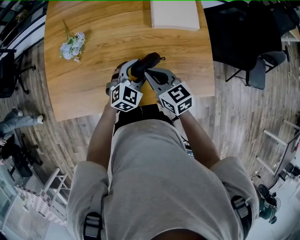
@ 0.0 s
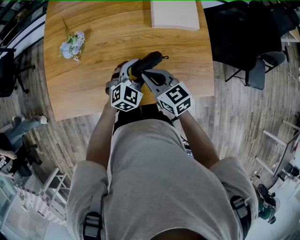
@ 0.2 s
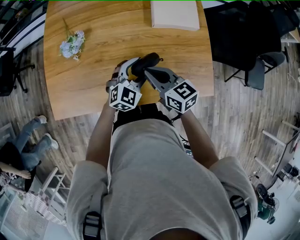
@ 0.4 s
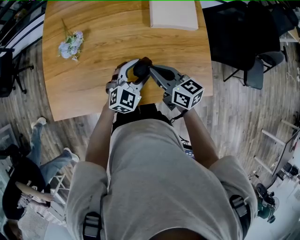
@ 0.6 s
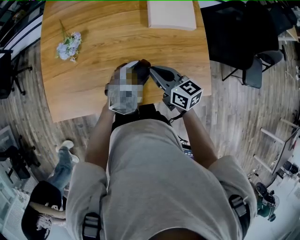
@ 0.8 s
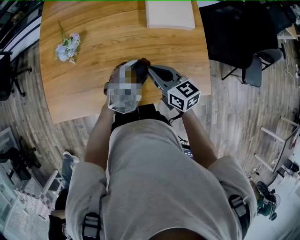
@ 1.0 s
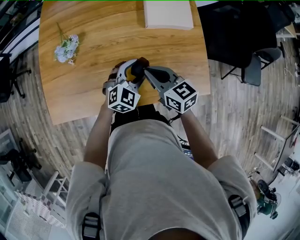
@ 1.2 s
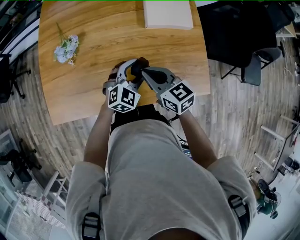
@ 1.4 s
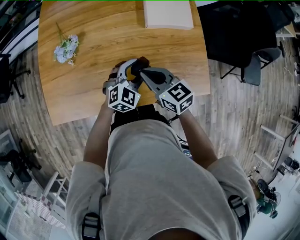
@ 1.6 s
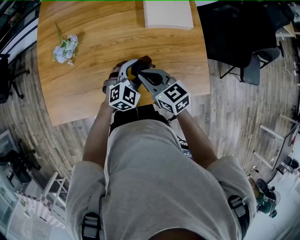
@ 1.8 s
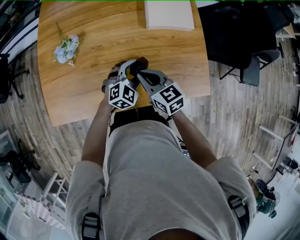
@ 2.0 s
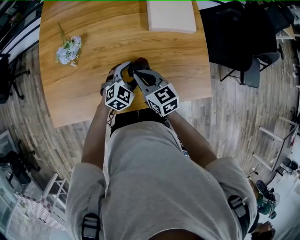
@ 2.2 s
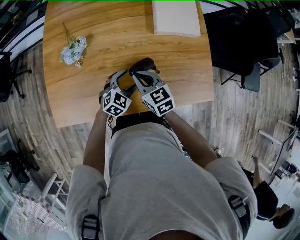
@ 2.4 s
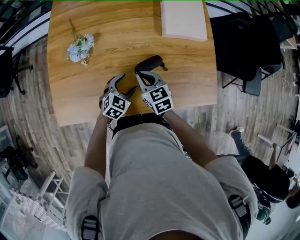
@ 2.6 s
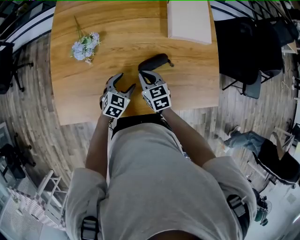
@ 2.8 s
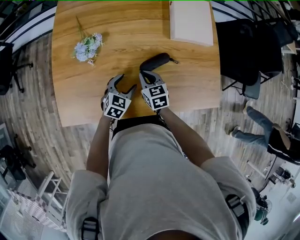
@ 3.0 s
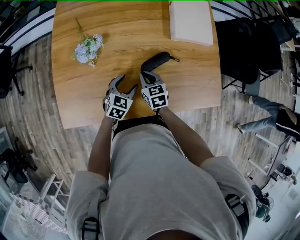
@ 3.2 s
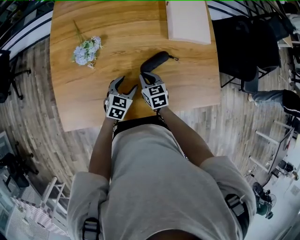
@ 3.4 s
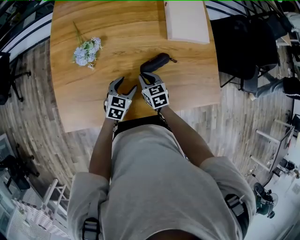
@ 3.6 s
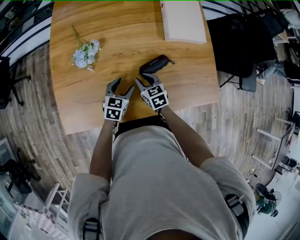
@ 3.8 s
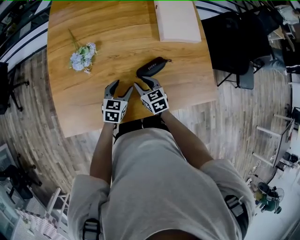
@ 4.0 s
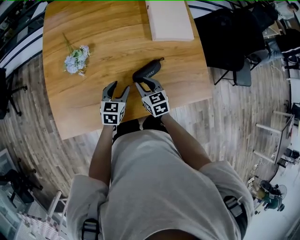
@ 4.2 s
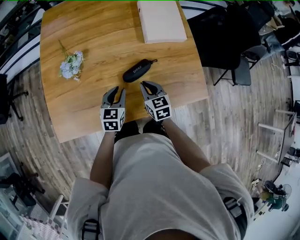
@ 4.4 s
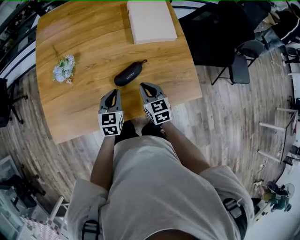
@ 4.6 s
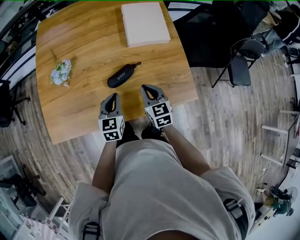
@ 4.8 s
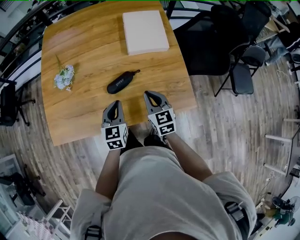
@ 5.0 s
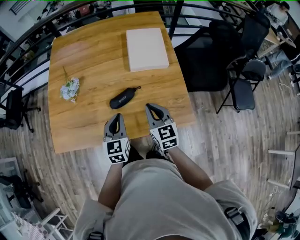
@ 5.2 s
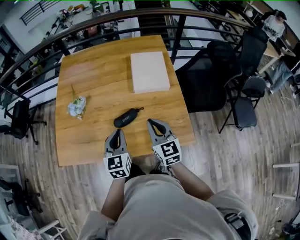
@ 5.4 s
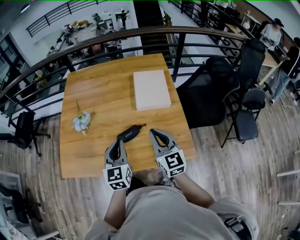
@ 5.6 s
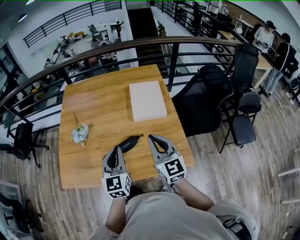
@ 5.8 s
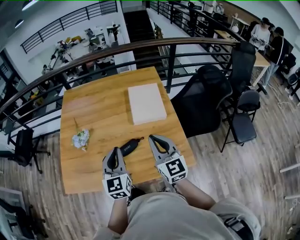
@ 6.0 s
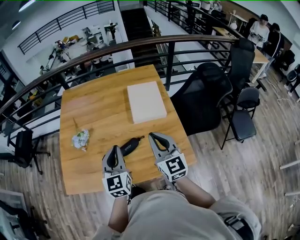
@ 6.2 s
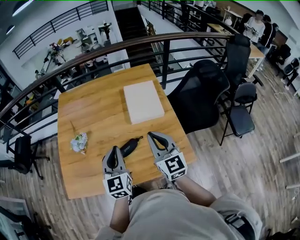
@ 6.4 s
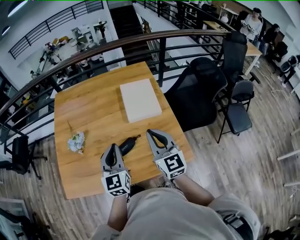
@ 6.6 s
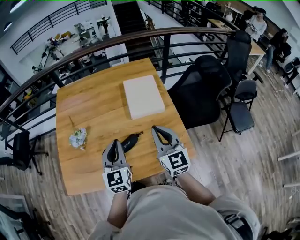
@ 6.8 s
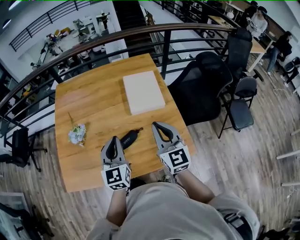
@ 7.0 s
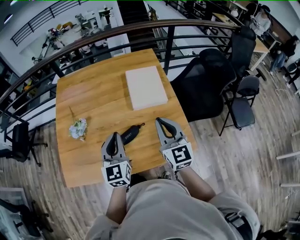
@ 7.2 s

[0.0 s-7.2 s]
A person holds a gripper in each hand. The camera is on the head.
0.0 to 1.4 s: The grippers stay close to where they were, moving slightly.
1.4 to 2.8 s: The left gripper travels to the left and downward by approximately 20 cm, and rotates about 30 degrees, while the right gripper heads downward and to the left, covering about 15 cm.
2.8 to 4.4 s: The right gripper heads to the right, covering about 10 cm, and opens and closes again. The left gripper heads upward, covering some 5 cm, and closes up.
4.4 to 5.8 s: The two grippers go roughly 30 cm upward and to the right. The right gripper tilts its fingers roughly 30 degrees upward, while the left gripper turns by some 30 degrees.
5.8 to 7.2 s: There are only small adjustments of the grippers.

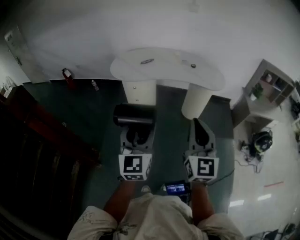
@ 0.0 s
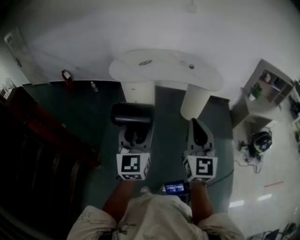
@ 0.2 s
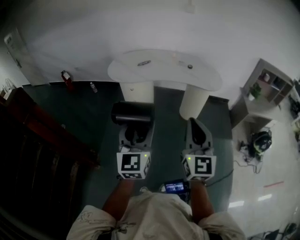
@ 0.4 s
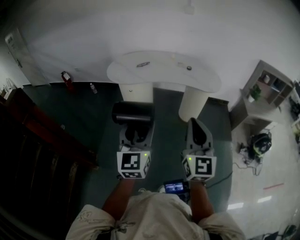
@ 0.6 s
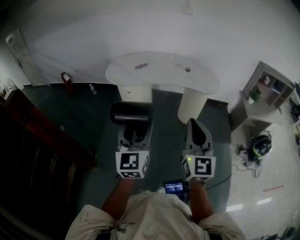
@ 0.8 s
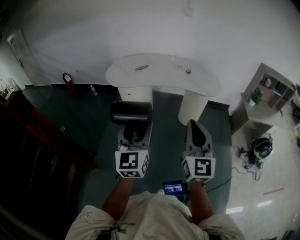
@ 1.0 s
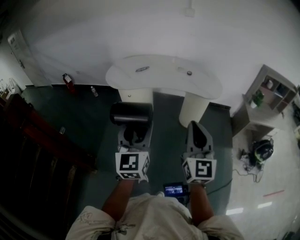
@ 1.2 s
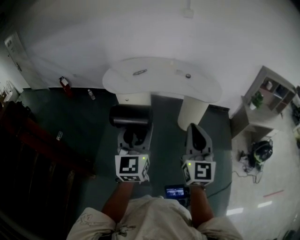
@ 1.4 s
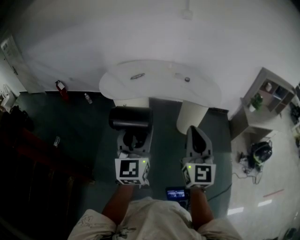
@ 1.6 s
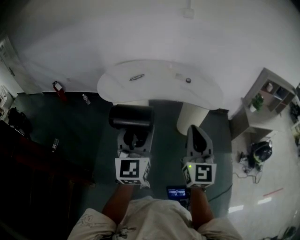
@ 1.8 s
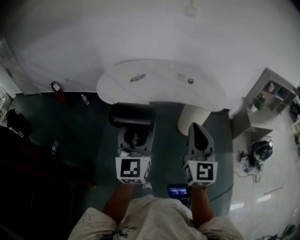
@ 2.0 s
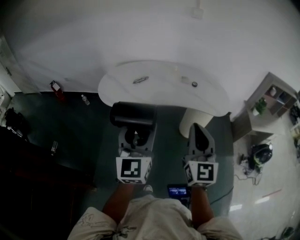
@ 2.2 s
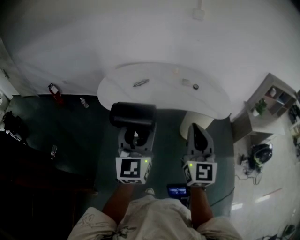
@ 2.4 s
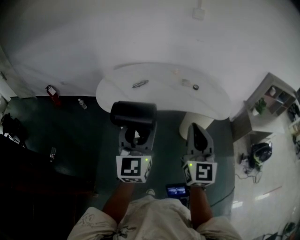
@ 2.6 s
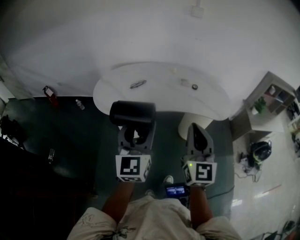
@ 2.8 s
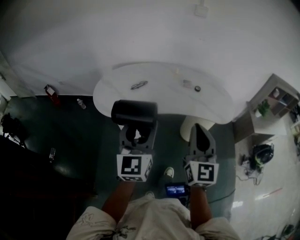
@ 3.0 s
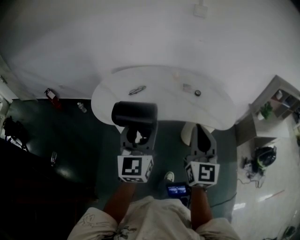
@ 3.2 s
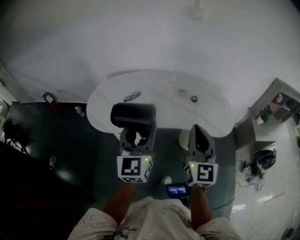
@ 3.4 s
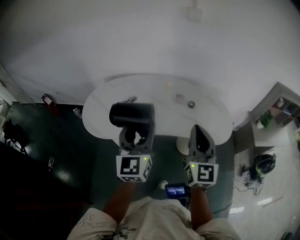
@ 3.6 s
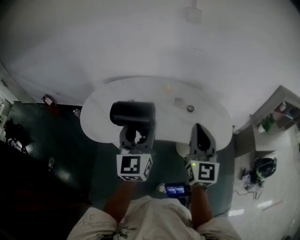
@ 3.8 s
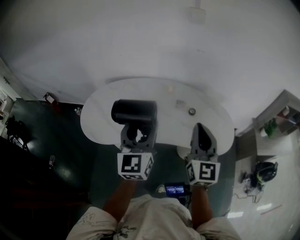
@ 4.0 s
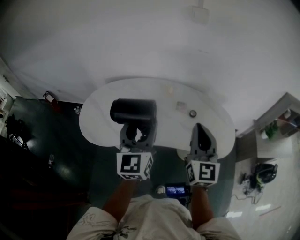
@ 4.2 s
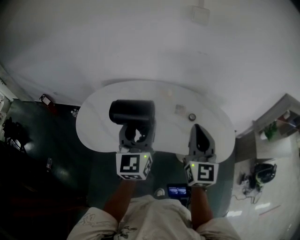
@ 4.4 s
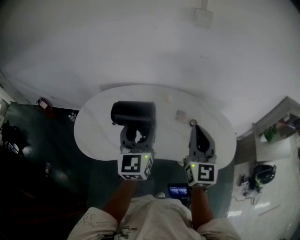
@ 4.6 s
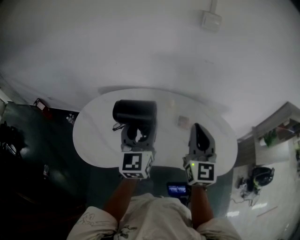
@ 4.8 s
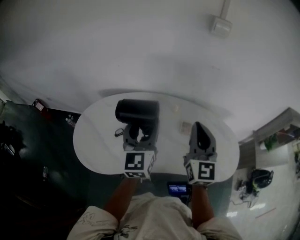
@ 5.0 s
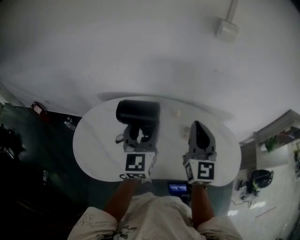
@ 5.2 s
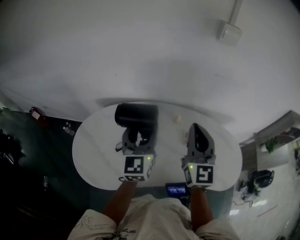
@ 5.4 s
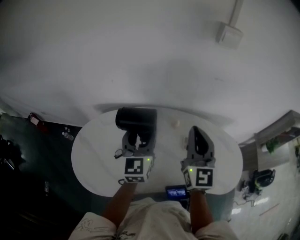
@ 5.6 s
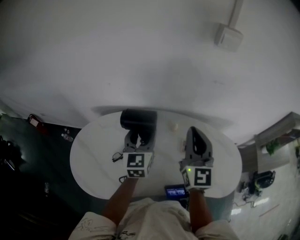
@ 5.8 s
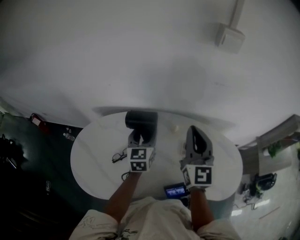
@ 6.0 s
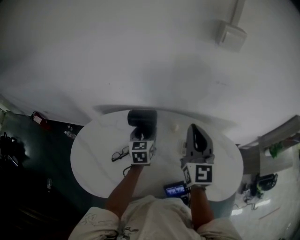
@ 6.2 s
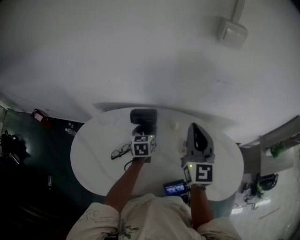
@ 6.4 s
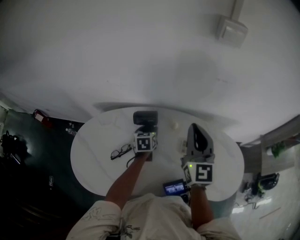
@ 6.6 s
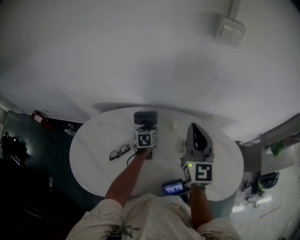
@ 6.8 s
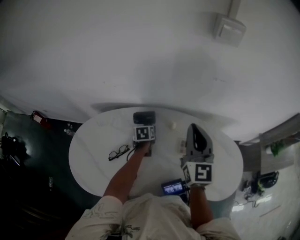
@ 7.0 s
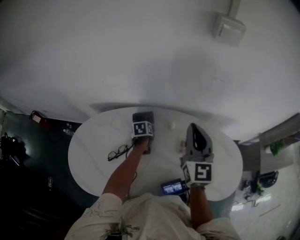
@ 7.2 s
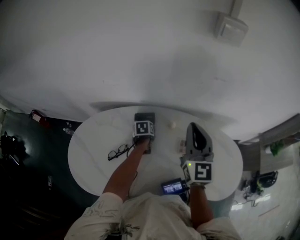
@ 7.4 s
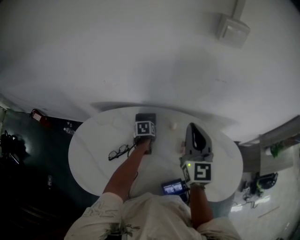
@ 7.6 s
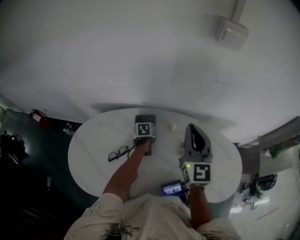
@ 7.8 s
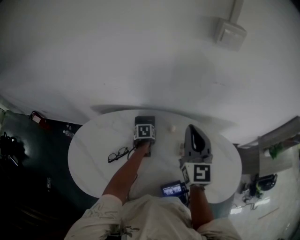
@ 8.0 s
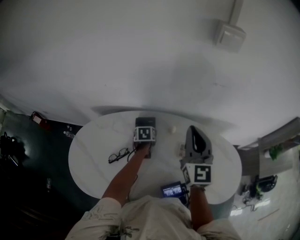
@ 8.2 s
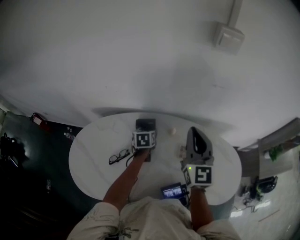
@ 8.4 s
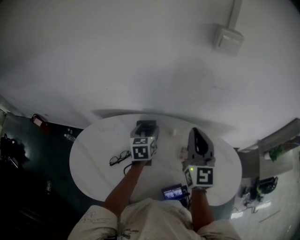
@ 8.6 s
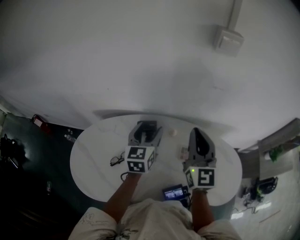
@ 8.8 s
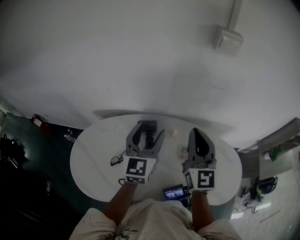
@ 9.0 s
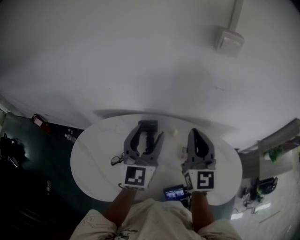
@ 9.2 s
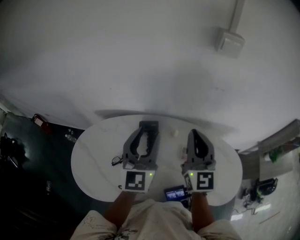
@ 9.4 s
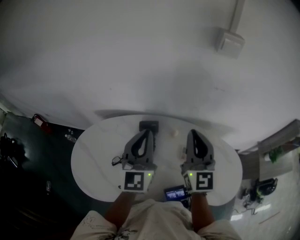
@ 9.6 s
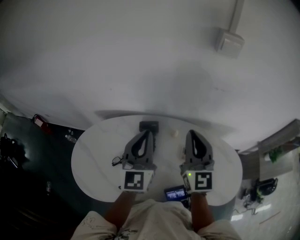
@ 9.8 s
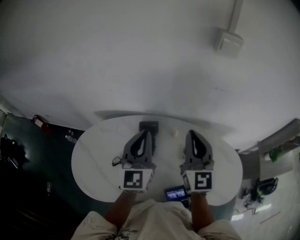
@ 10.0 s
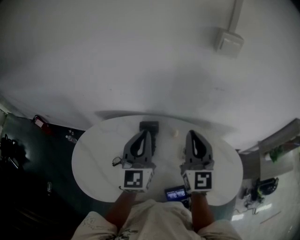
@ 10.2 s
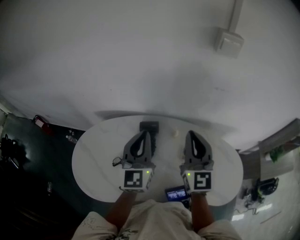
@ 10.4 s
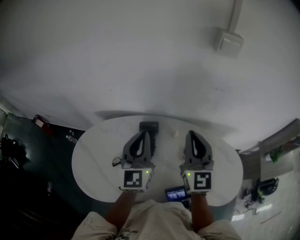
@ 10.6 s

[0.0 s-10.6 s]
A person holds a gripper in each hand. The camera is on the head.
0.0 to 1.6 s: Both grippers travel together forward and to the right, roughly 15 cm.
1.6 to 3.0 s: The two grippers go some 25 cm forward.
3.0 to 4.6 s: The two grippers go approximately 30 cm forward.
4.6 to 6.0 s: The right gripper is displaced forward by about 20 cm. Meanwhile the left gripper goes some 30 cm forward and downward, and changes its angle by some 20 degrees.
6.0 to 7.6 s: The right gripper moves approximately 5 cm. Meanwhile the left gripper shifts roughly 20 cm downward, and points its fingers some 40 degrees further downward.
7.6 to 9.0 s: The left gripper heads upward, covering some 35 cm, and angles its fingers upward, by roughly 60 degrees; the right gripper changes place by approximately 5 cm.
9.0 to 10.6 s: The left gripper closes up.

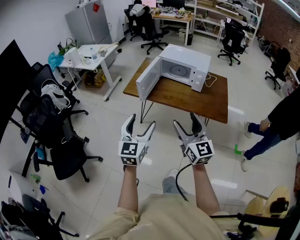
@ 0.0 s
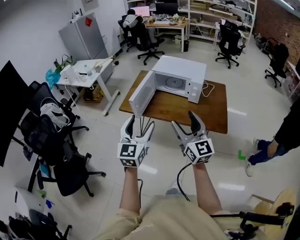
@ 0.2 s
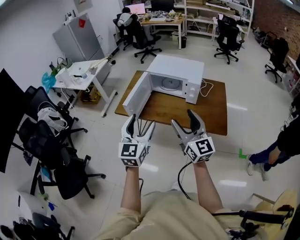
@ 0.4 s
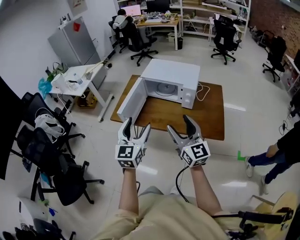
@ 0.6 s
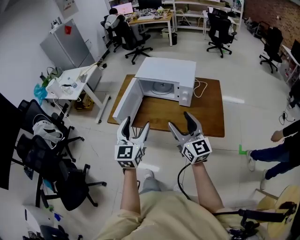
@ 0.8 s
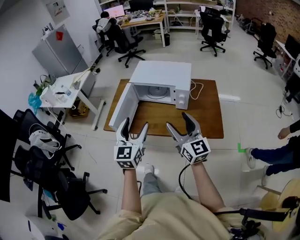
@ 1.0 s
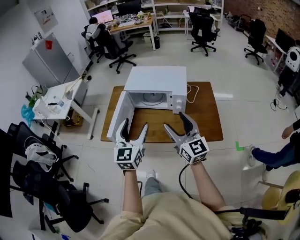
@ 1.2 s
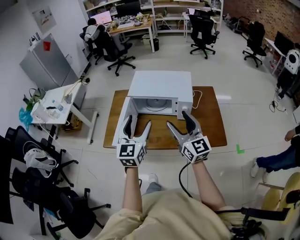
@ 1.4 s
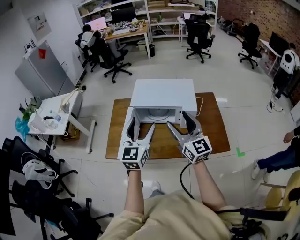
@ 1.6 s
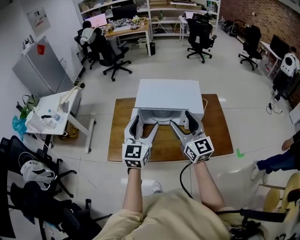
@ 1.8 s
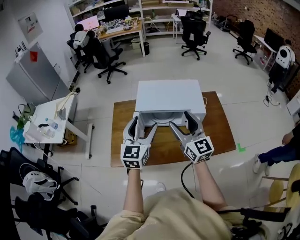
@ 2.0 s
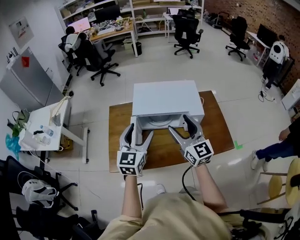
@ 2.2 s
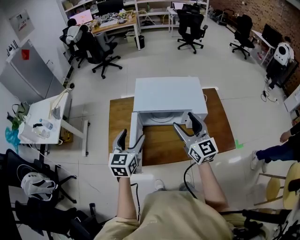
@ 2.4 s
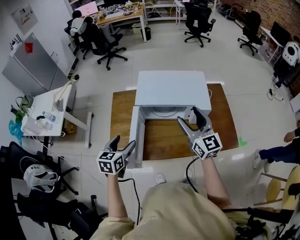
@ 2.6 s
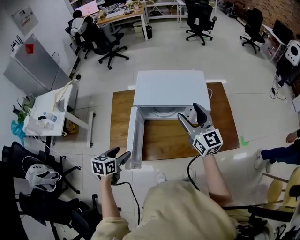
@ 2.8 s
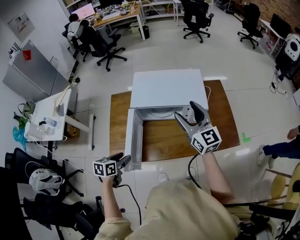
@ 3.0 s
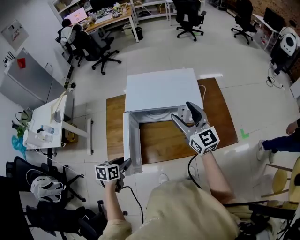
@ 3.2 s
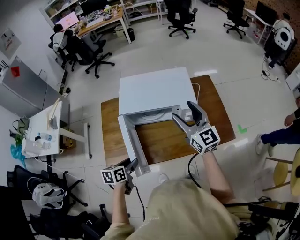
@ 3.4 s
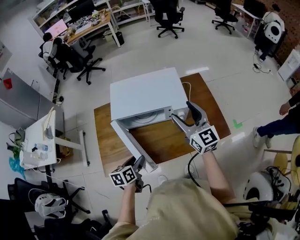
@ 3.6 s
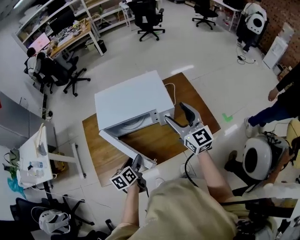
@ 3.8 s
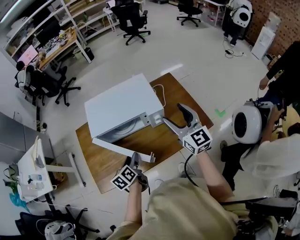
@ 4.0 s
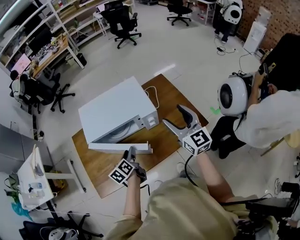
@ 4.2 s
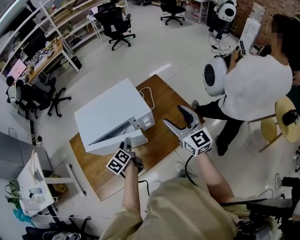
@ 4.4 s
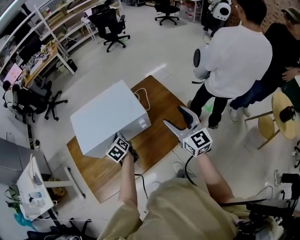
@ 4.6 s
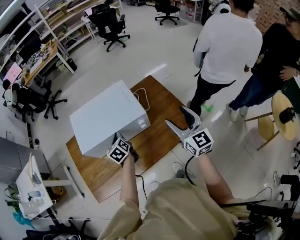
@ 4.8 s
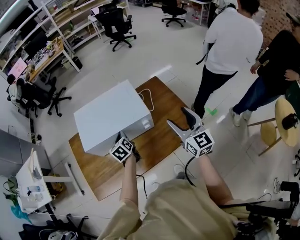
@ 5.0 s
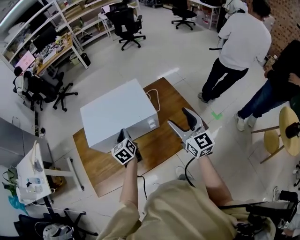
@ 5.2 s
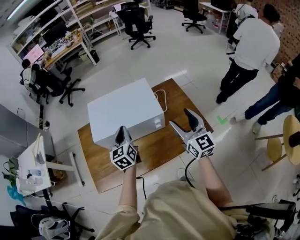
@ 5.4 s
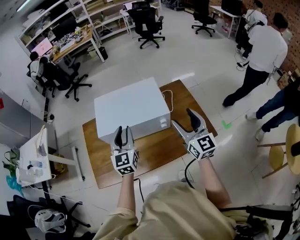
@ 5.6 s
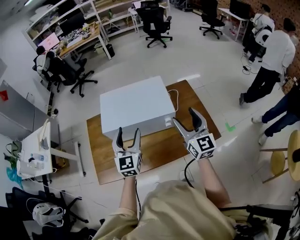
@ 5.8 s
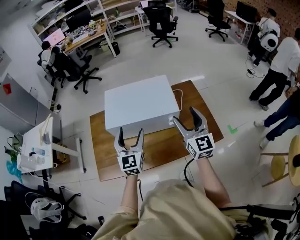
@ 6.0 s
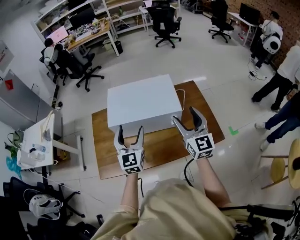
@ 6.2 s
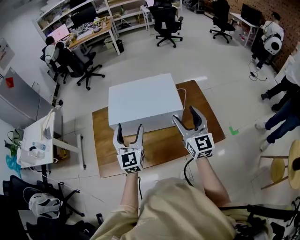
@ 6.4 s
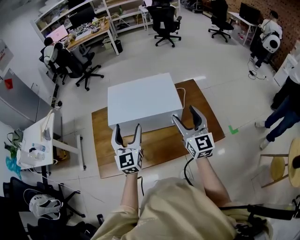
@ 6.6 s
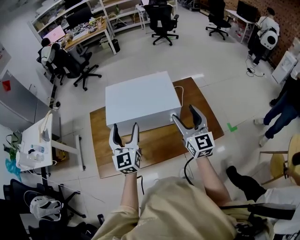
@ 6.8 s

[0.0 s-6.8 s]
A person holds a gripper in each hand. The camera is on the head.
0.0 to 1.4 s: Both grippers move forward, roughly 35 cm.
1.4 to 2.8 s: The left gripper shifts some 35 cm to the left, downward and forward, and tilts its fingers about 40 degrees downward. The right gripper goes some 25 cm forward.
2.8 to 4.0 s: The right gripper heads to the right and upward, covering some 10 cm. The left gripper heads to the right and forward, covering roughly 15 cm, and rotates some 20 degrees.
4.0 to 5.4 s: The left gripper shifts about 15 cm upward, forward and to the right, rotates some 30 degrees, and closes. Meanwhile the right gripper travels to the right by approximately 5 cm.
5.4 to 6.8 s: The left gripper moves backward and to the left, some 10 cm, turns by about 20 degrees, and opens up; the right gripper shifts some 5 cm to the left.
